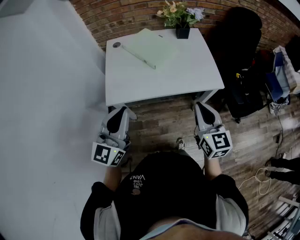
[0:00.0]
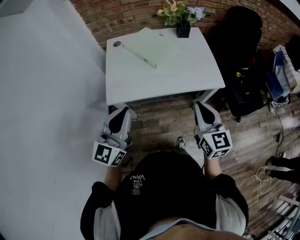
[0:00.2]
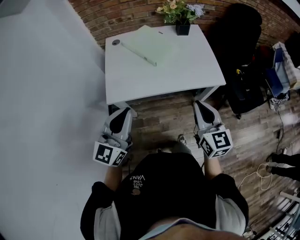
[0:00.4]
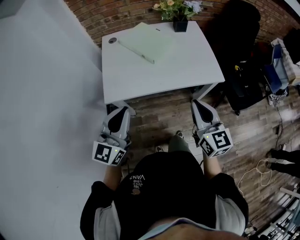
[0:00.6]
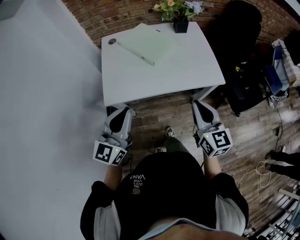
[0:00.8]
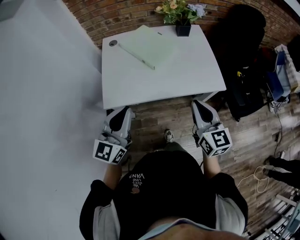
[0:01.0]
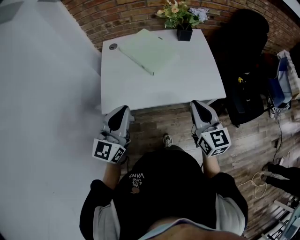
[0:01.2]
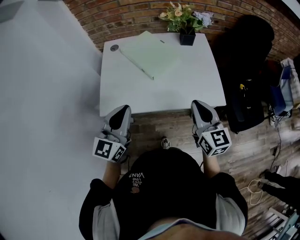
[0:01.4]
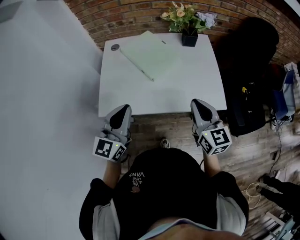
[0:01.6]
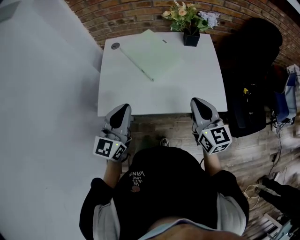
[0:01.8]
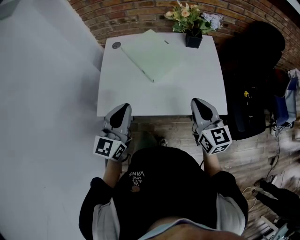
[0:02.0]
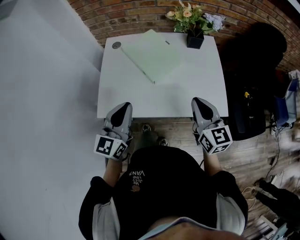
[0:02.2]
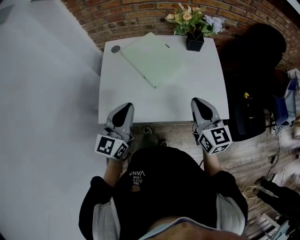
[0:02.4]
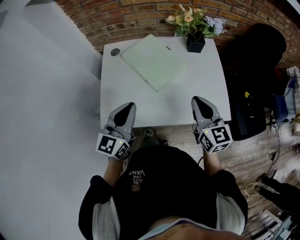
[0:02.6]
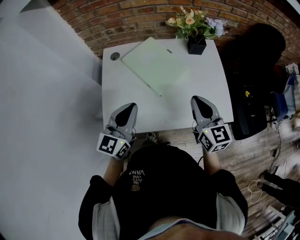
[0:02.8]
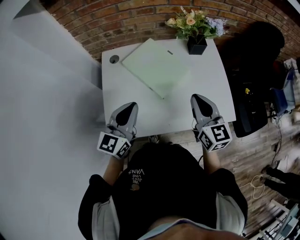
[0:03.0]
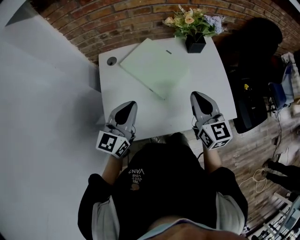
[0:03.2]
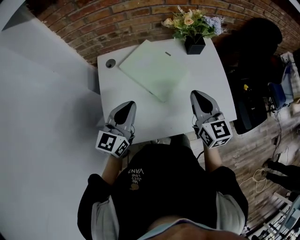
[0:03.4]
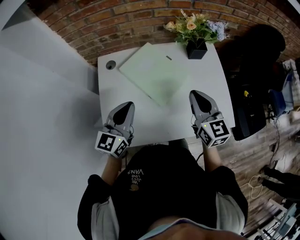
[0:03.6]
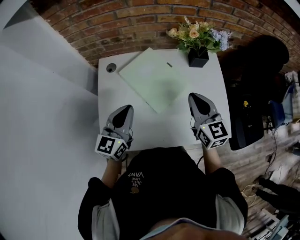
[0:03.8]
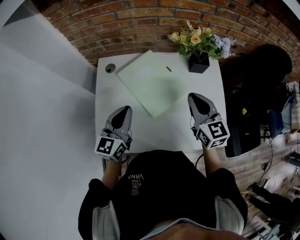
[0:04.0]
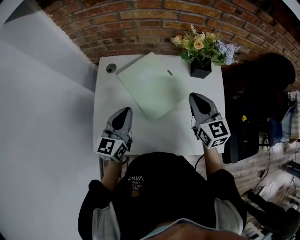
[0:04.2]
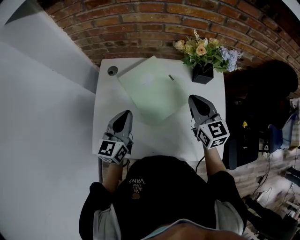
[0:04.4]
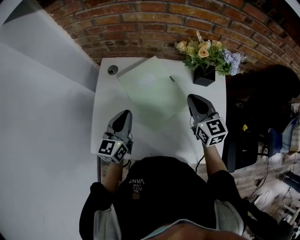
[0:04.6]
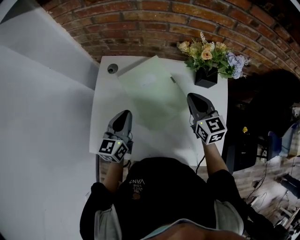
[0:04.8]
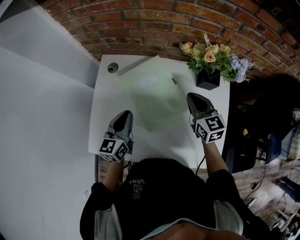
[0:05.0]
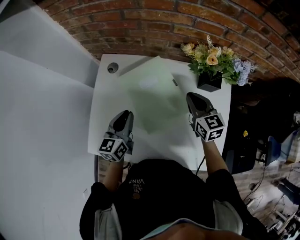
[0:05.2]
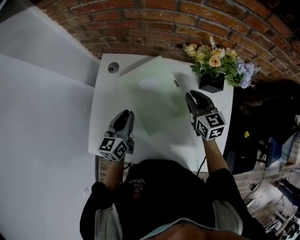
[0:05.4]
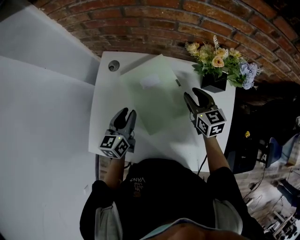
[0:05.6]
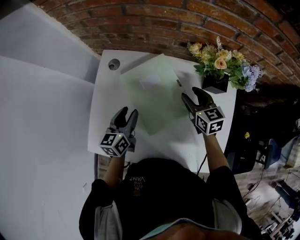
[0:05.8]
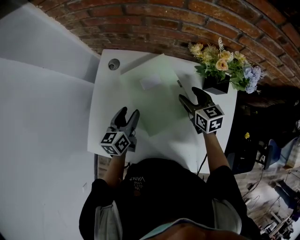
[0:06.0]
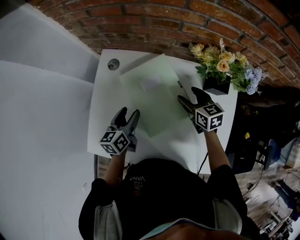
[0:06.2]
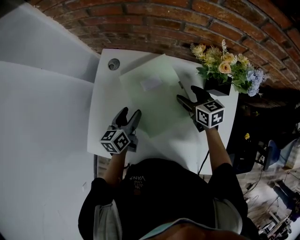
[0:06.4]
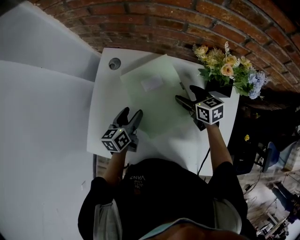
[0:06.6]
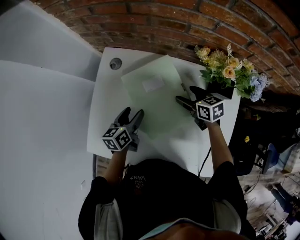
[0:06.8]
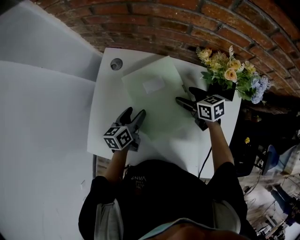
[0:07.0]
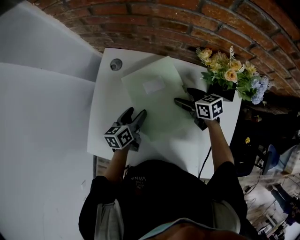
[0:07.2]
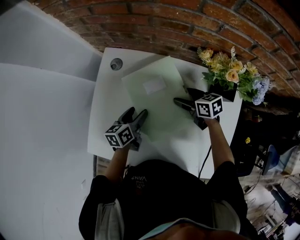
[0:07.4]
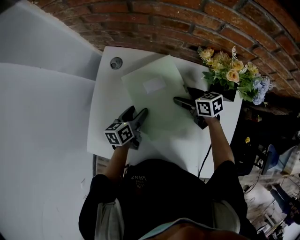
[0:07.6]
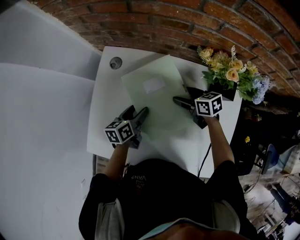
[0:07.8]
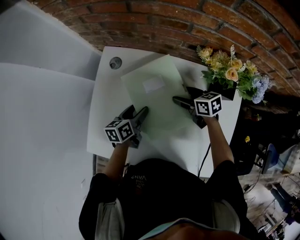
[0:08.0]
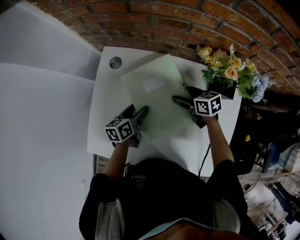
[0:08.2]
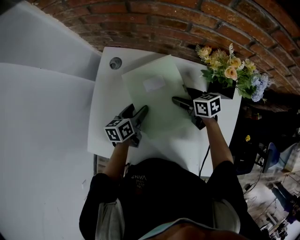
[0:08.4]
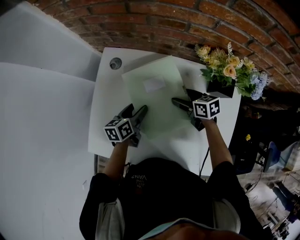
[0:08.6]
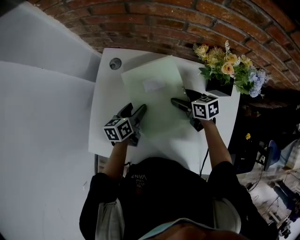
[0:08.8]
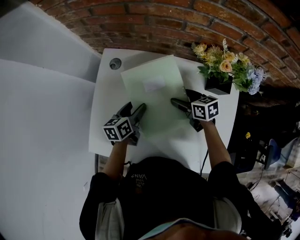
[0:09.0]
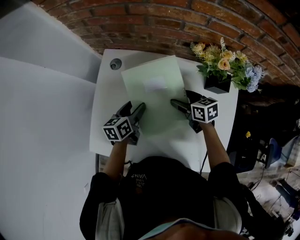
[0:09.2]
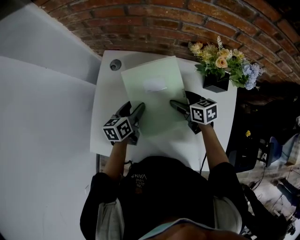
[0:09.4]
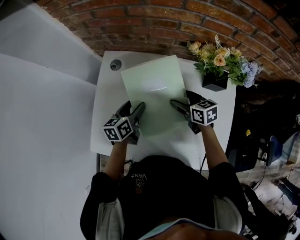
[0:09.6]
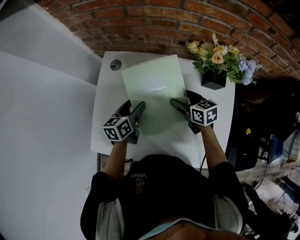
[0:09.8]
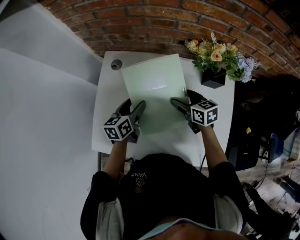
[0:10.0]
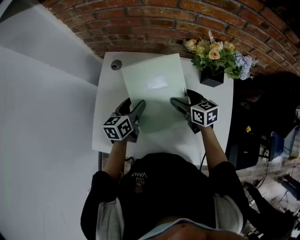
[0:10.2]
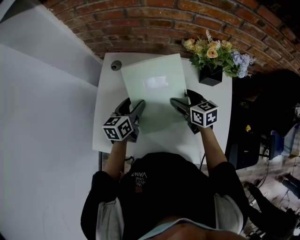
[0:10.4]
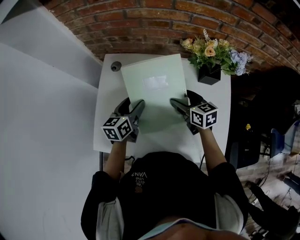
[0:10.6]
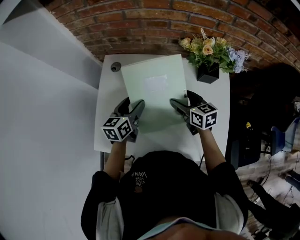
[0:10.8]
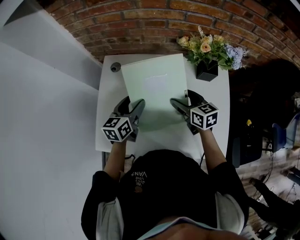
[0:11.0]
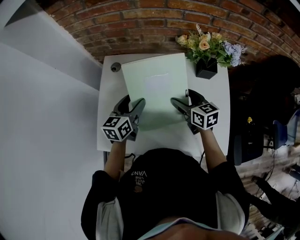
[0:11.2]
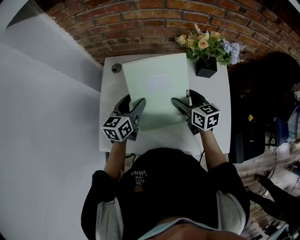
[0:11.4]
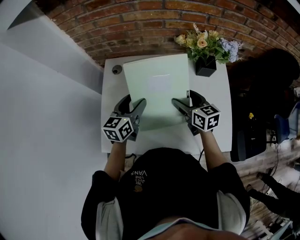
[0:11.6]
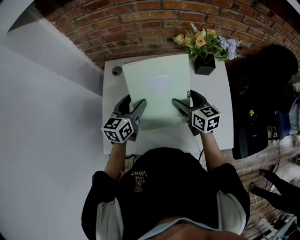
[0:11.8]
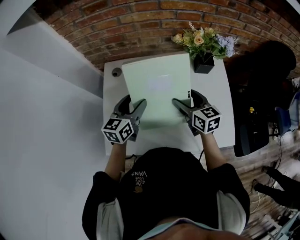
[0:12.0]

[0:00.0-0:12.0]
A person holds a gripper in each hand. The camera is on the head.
0:00.0 to 0:01.6: Both grippers travel together forward, approximately 15 cm.
0:01.6 to 0:03.0: The left gripper shifts about 15 cm forward, while the right gripper shifts approximately 15 cm forward and to the left.
0:03.0 to 0:04.4: The left gripper shifts some 10 cm forward and downward, and changes its angle by some 20 degrees; the right gripper moves forward, approximately 15 cm.
0:04.4 to 0:06.0: The two grippers go some 15 cm downward and forward. The left gripper swivels about 30 degrees, and opens; the right gripper turns by some 20 degrees, and opens.
0:06.0 to 0:07.6: Both grippers travel together downward, some 5 cm. The right gripper swivels approximately 30 degrees.
0:07.6 to 0:09.0: The grippers move only a little.
0:09.0 to 0:10.4: The two grippers go approximately 5 cm upward.
0:10.4 to 0:12.0: The right gripper heads backward and upward, covering about 10 cm. Meanwhile the left gripper travels upward by some 10 cm, and rotates about 20 degrees.

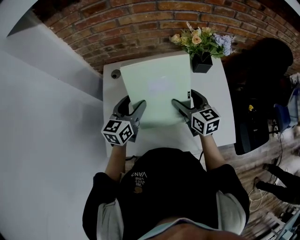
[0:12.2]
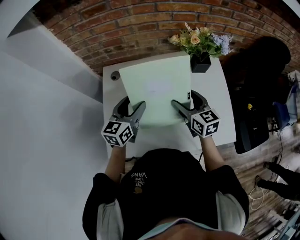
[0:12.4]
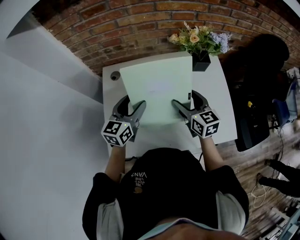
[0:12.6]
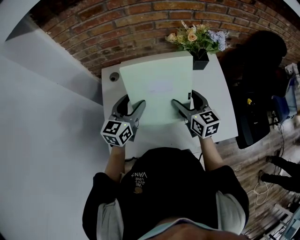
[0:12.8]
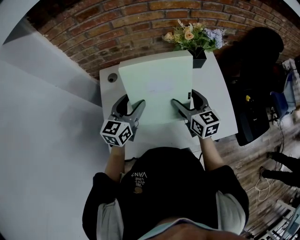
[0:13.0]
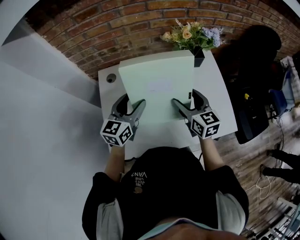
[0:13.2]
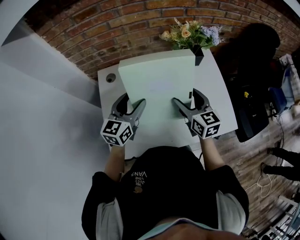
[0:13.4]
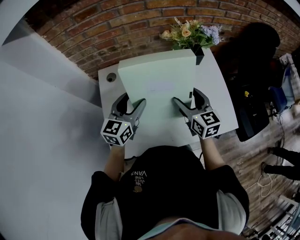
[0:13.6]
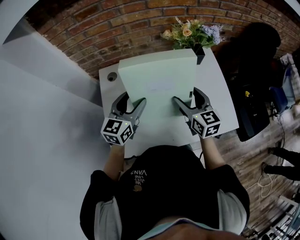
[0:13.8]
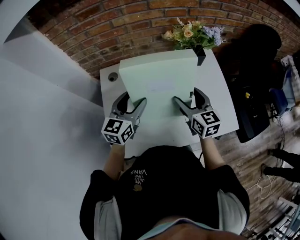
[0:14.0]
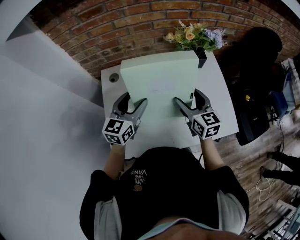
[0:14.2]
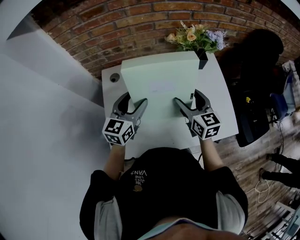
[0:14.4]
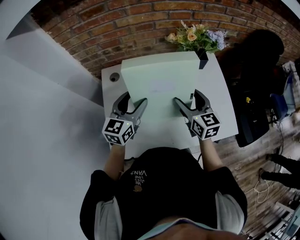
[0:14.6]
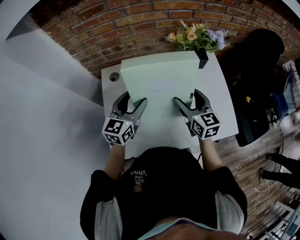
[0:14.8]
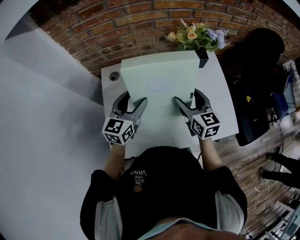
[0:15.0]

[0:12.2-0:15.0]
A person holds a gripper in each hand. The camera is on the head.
0:12.2 to 0:13.6: The right gripper moves approximately 5 cm.
0:13.6 to 0:15.0: There are only small adjustments of the grippers.

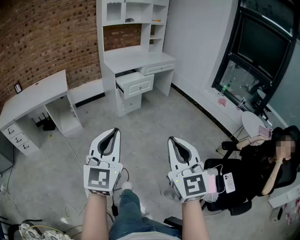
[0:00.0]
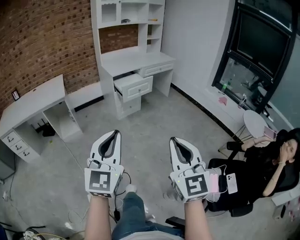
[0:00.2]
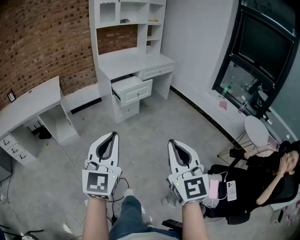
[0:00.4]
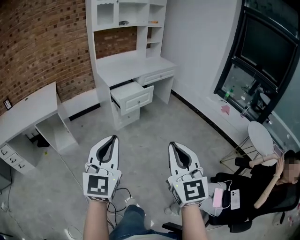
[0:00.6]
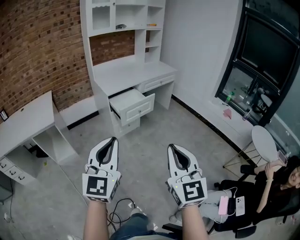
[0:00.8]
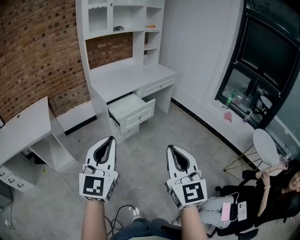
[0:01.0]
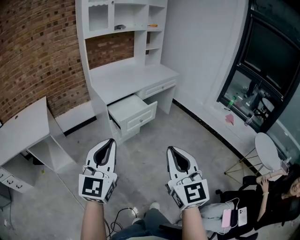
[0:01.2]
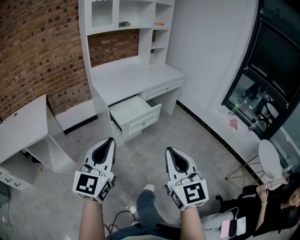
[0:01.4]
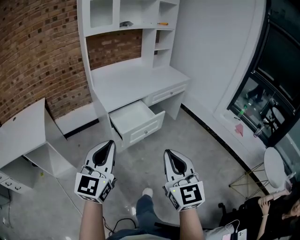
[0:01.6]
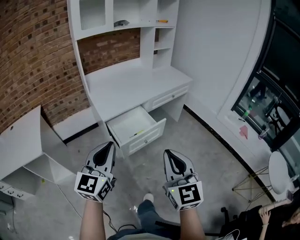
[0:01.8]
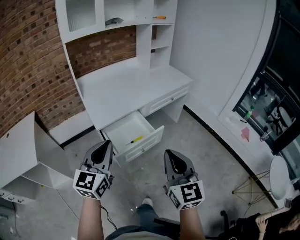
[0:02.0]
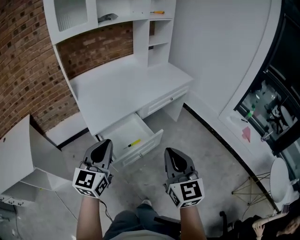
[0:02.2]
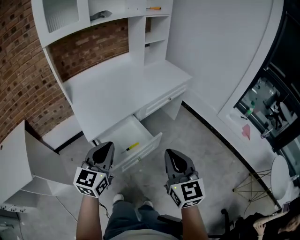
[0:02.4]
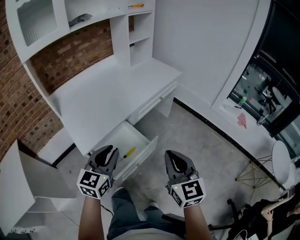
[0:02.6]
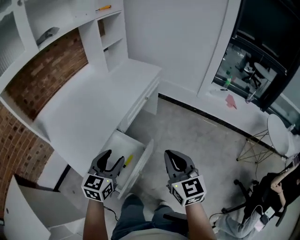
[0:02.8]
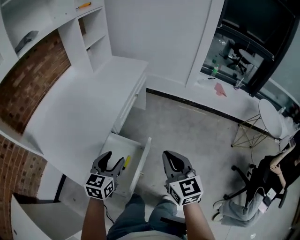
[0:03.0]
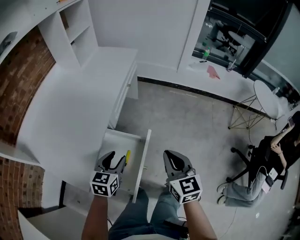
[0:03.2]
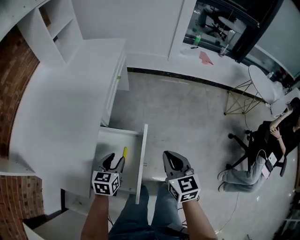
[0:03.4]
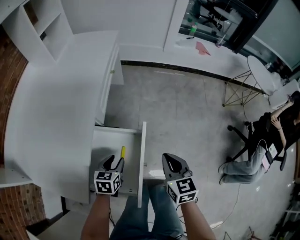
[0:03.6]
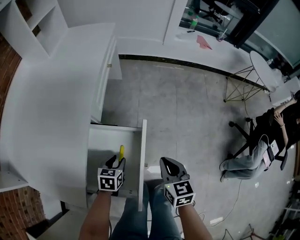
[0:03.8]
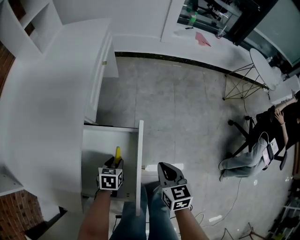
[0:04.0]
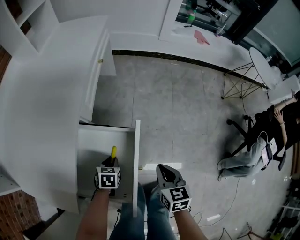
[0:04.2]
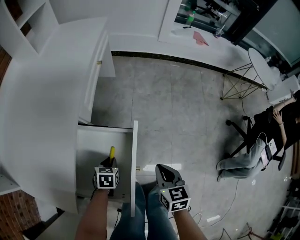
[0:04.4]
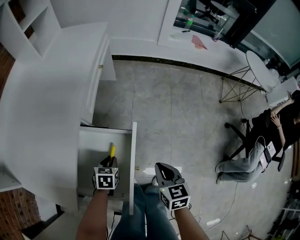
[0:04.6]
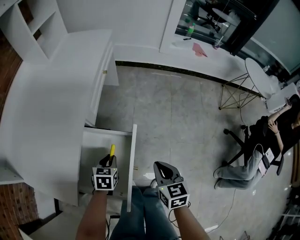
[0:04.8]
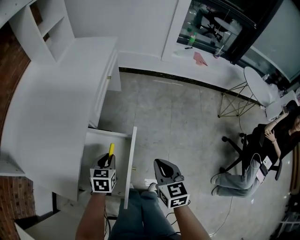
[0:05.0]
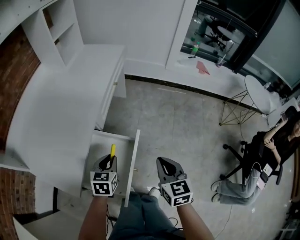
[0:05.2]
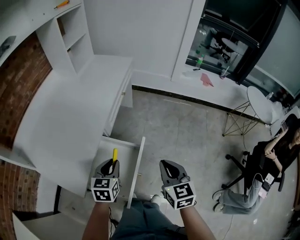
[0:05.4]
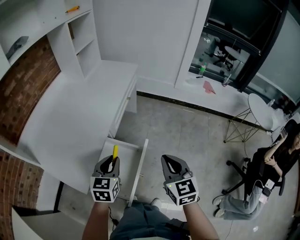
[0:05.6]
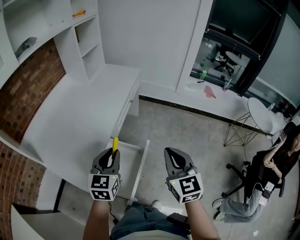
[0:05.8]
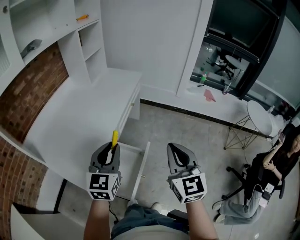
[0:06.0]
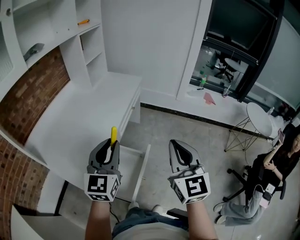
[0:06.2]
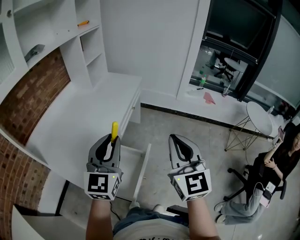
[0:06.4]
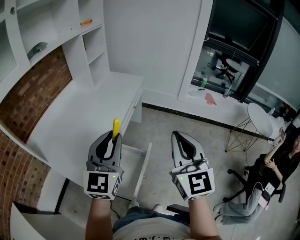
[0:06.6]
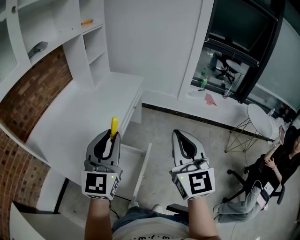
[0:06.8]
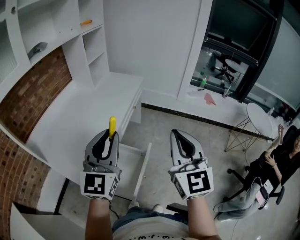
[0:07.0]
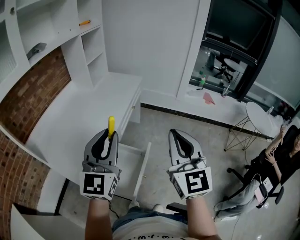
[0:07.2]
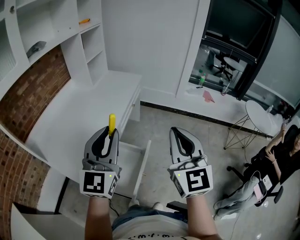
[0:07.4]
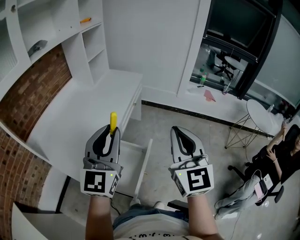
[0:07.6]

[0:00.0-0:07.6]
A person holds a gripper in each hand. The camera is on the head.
0:00.0 to 0:01.6: The two grippers travel together, forward, some 60 cm.
0:01.6 to 0:03.0: The right gripper changes place by approximately 40 cm, and turns by approximately 40 degrees. The left gripper shifts by approximately 50 cm, angles its fingers downward, by approximately 30 degrees, and opens up.
0:03.0 to 0:04.6: The grippers both shift downward by approximately 25 cm. The left gripper tilts its fingers some 30 degrees downward, and closes up, while the right gripper swivels roughly 30 degrees.
0:04.6 to 0:06.0: The grippers both shift upward by approximately 40 cm. The left gripper tilts its fingers approximately 50 degrees upward. Meanwhile the right gripper tips its fingers upward by roughly 30 degrees.
0:06.0 to 0:07.6: The two grippers go about 10 cm upward. The left gripper rotates about 20 degrees.

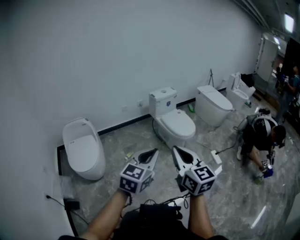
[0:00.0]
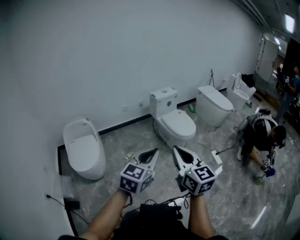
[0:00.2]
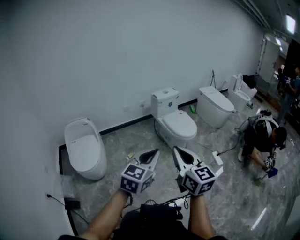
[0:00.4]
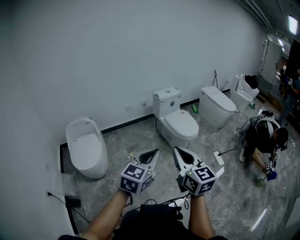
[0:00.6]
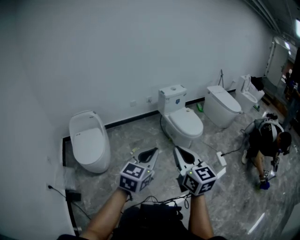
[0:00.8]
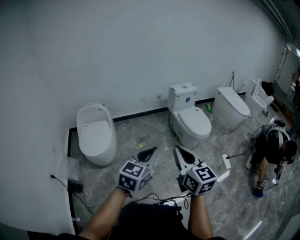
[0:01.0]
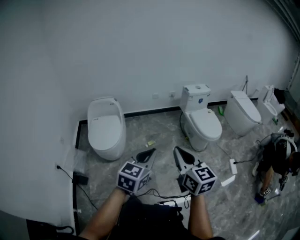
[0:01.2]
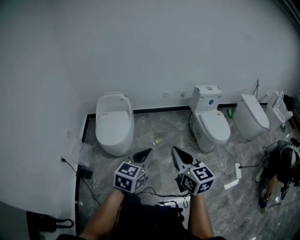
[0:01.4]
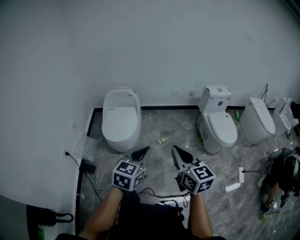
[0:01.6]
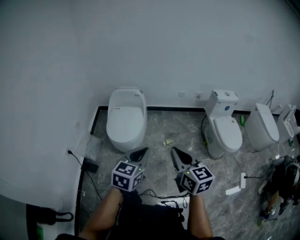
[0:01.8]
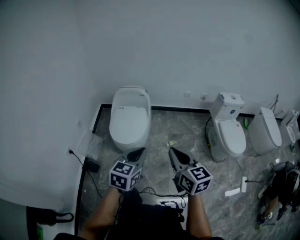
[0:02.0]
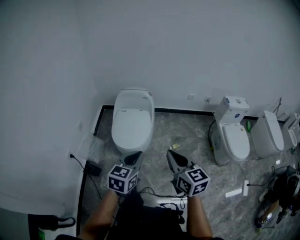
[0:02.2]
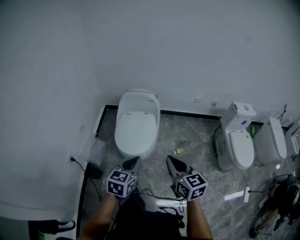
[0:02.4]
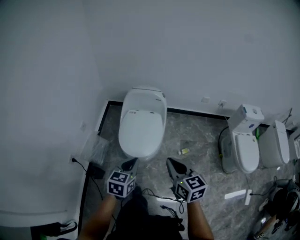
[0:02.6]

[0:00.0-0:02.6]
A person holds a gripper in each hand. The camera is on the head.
0:00.0 to 0:01.2: Both grippers move to the left, roughly 10 cm.
0:01.2 to 0:02.6: Both grippers travel together to the left, forward and downward, approximately 40 cm. The right gripper rotates approximately 30 degrees; the left gripper swivels some 30 degrees.
